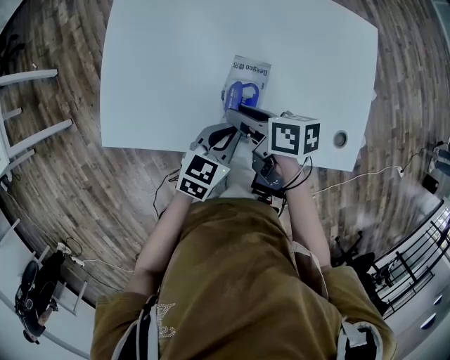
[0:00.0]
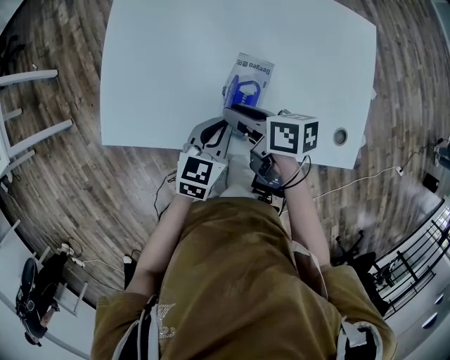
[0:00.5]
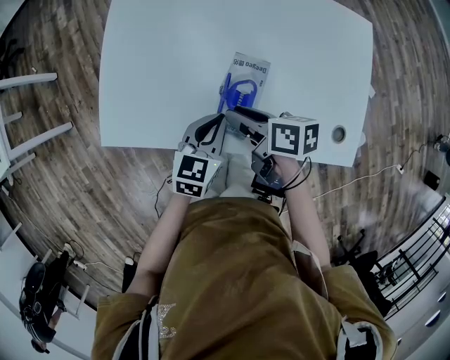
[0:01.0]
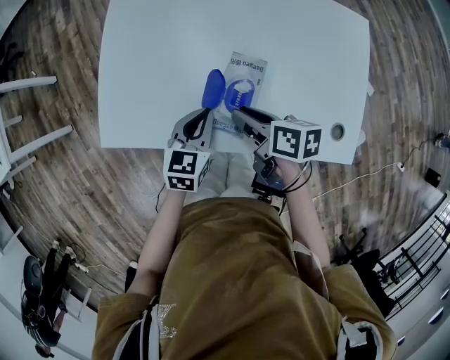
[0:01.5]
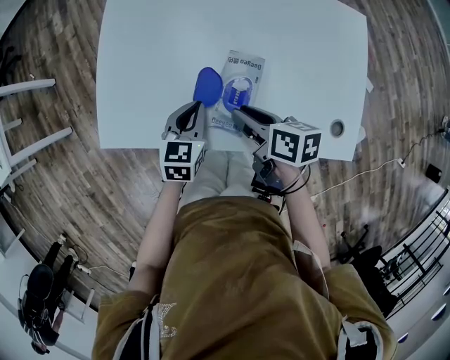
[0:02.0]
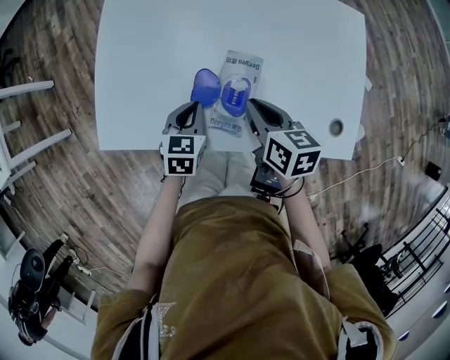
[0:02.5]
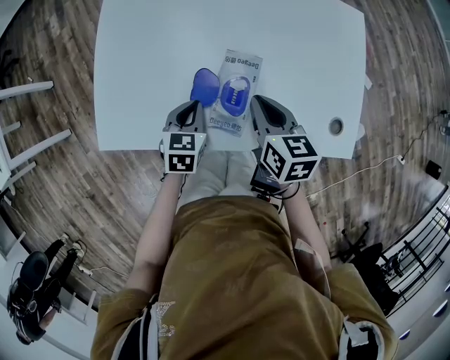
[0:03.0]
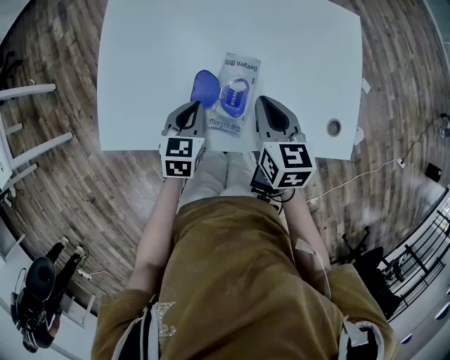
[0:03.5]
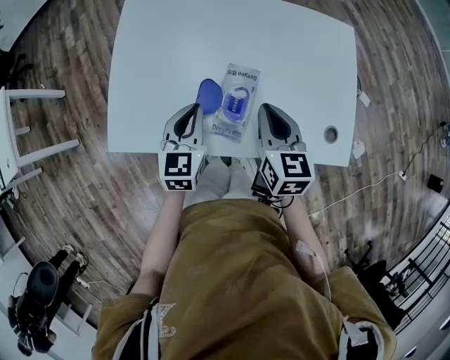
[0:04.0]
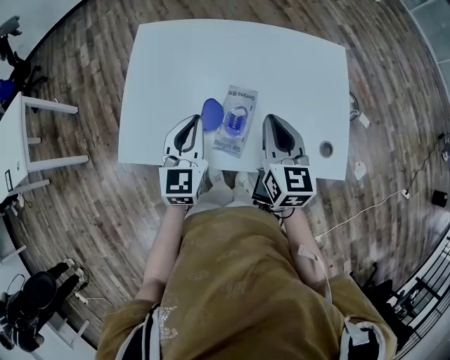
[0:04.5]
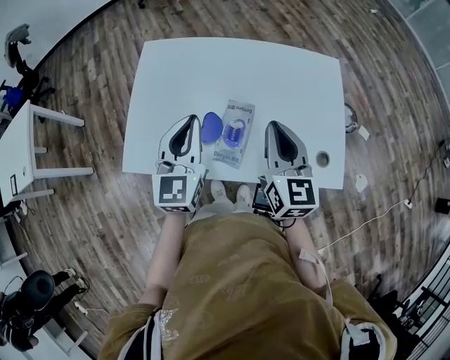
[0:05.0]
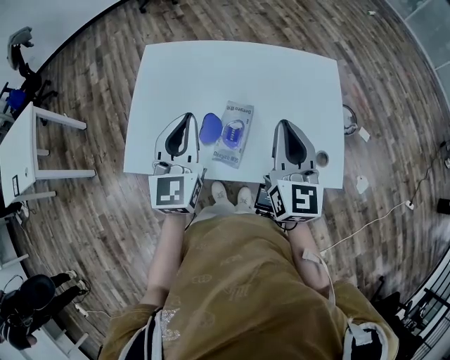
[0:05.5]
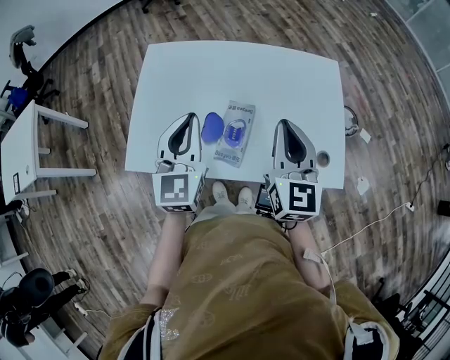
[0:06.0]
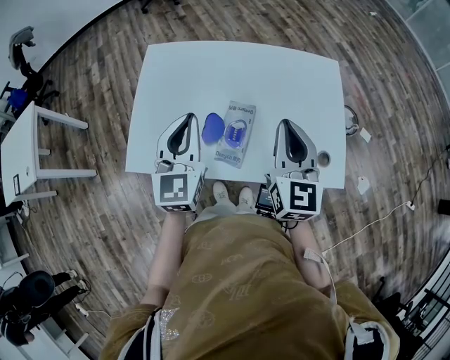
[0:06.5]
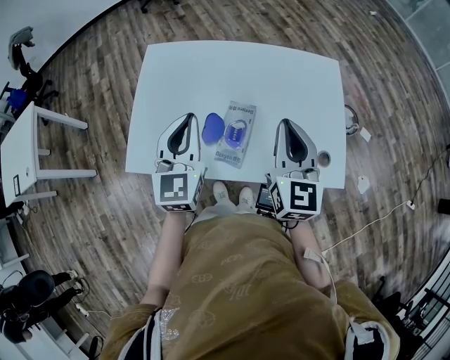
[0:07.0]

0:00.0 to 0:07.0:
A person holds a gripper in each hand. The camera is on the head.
0:00.0 to 0:02.0: The left gripper moves to the left and forward, about 10 cm, and rotates approximately 20 degrees.
0:02.0 to 0:03.5: The right gripper changes place by about 5 cm, swivels roughly 40 degrees, and closes.
0:03.5 to 0:05.0: The right gripper goes about 15 cm upward, and rotates some 20 degrees. Meanwhile the left gripper heads upward, covering approximately 25 cm, and tips its fingers upward by some 30 degrees.
0:05.0 to 0:07.0: The grippers move only a little.

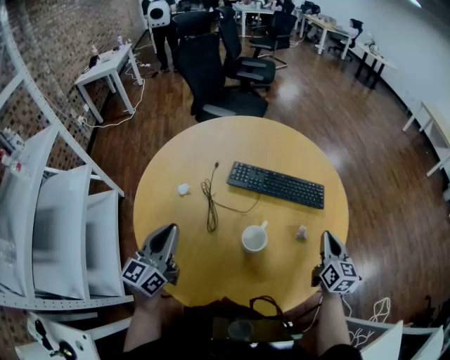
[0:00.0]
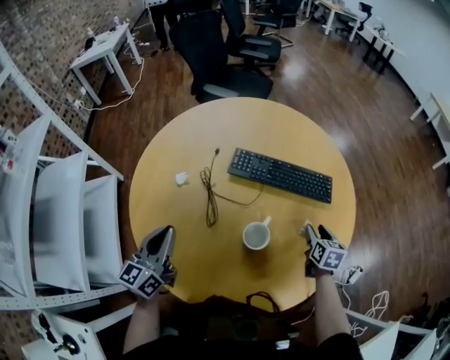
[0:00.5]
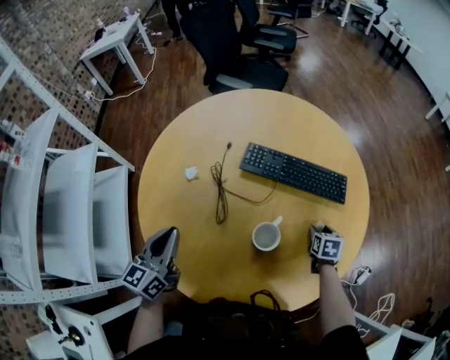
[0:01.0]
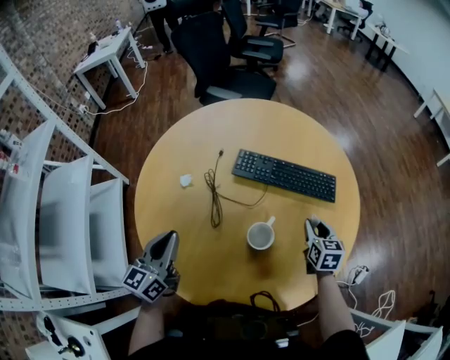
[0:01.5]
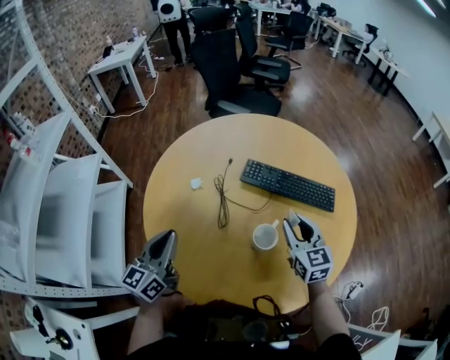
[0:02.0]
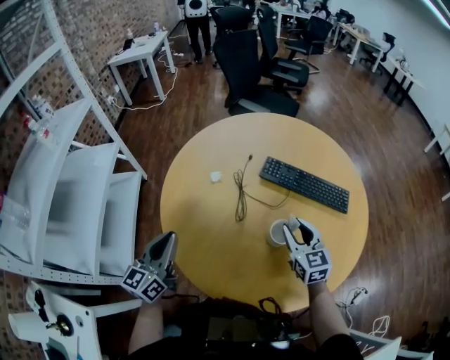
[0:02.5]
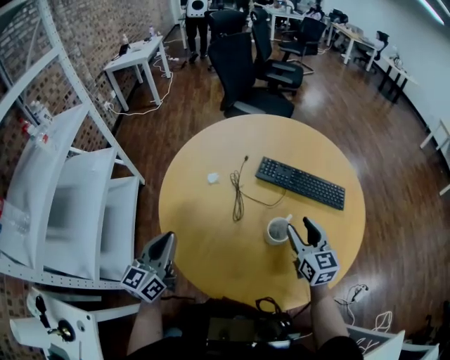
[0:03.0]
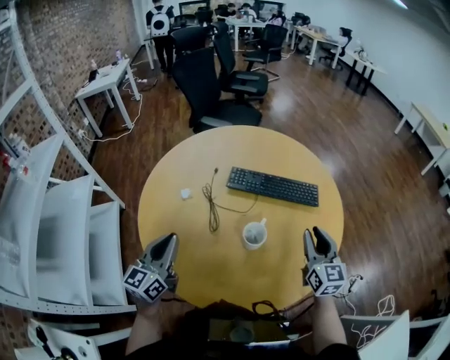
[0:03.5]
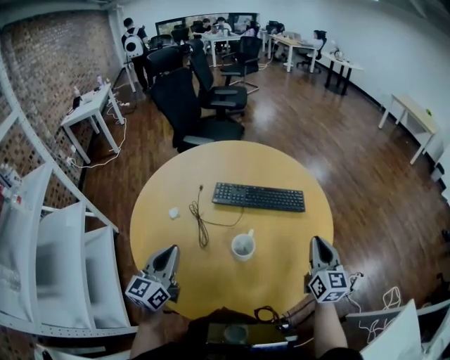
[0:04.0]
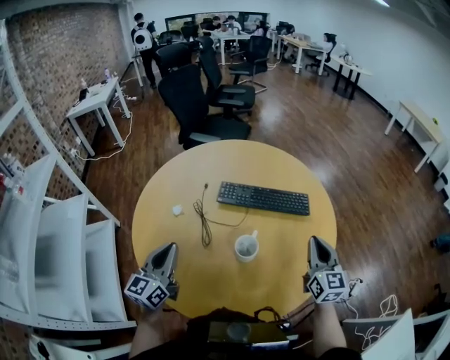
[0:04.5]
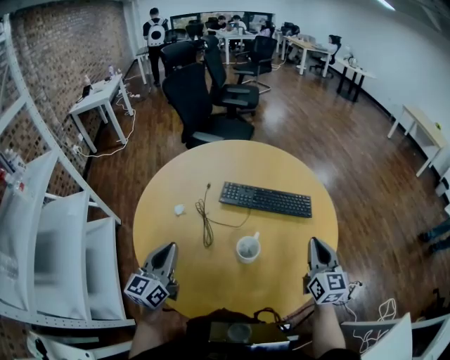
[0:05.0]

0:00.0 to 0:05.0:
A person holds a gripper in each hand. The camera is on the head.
0:00.0 to 0:02.5: The right gripper shifts about 20 cm to the left, rotates some 30 degrees, and opens its fingers; the left gripper travels backward and to the left by about 10 cm.
0:02.5 to 0:05.0: The left gripper heads to the right and forward, covering roughly 10 cm. Meanwhile the right gripper heads to the right, covering about 20 cm, swivels approximately 30 degrees, and closes its fingers.

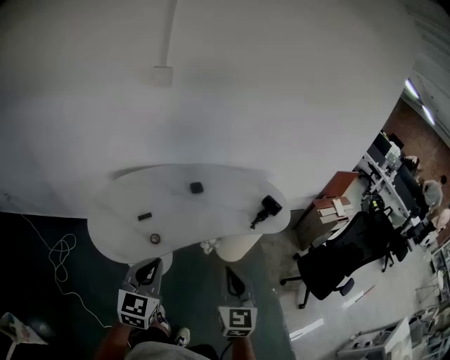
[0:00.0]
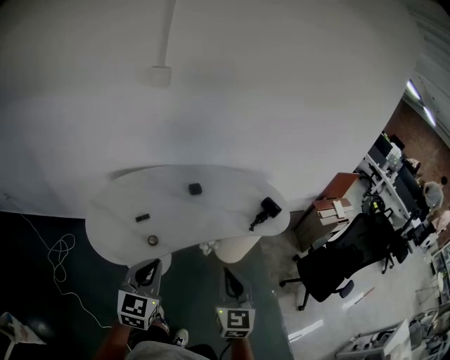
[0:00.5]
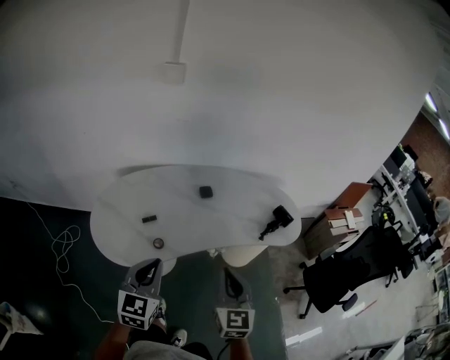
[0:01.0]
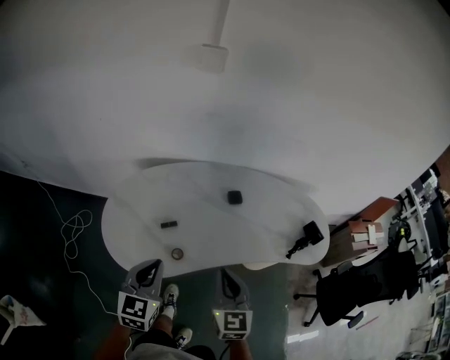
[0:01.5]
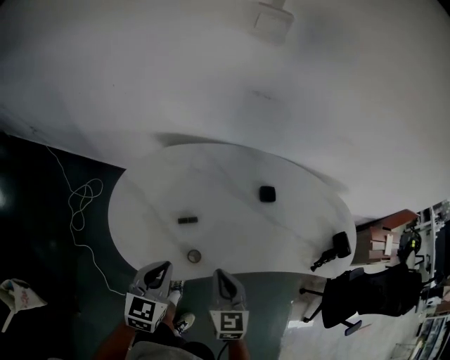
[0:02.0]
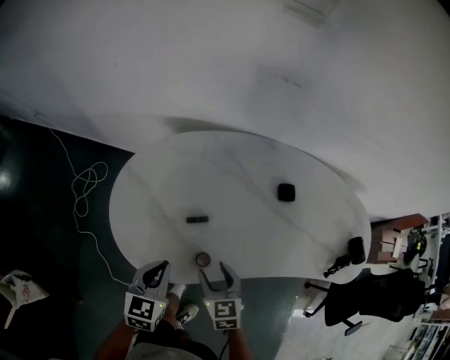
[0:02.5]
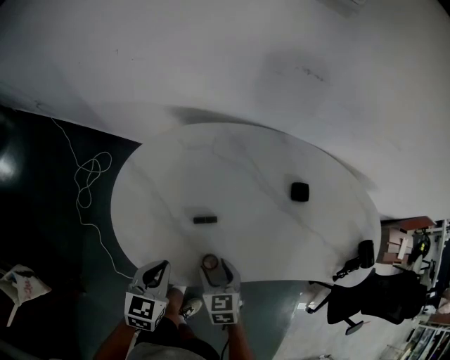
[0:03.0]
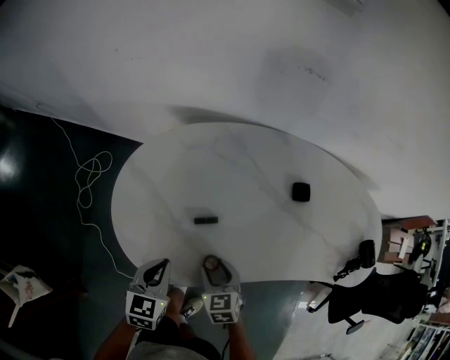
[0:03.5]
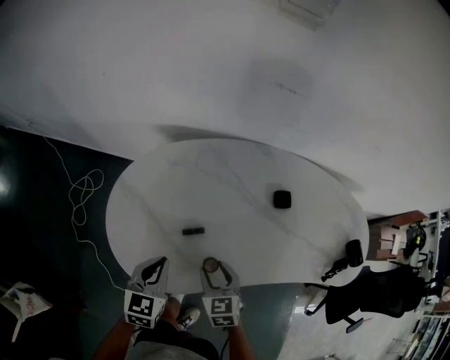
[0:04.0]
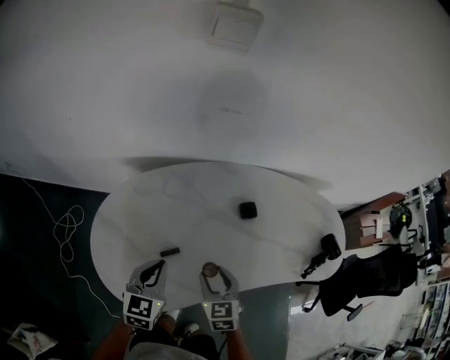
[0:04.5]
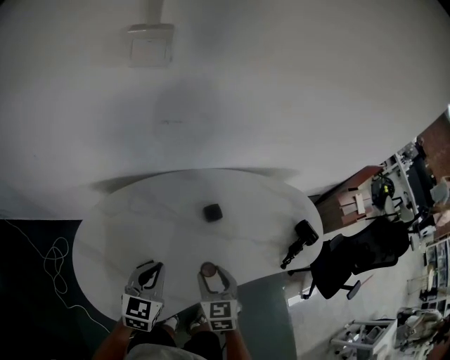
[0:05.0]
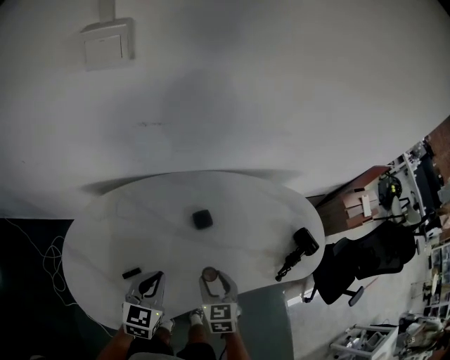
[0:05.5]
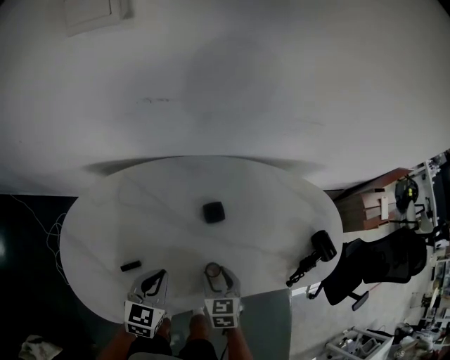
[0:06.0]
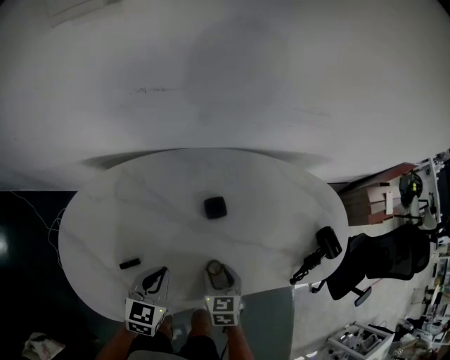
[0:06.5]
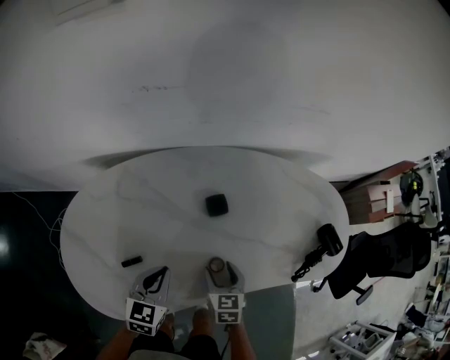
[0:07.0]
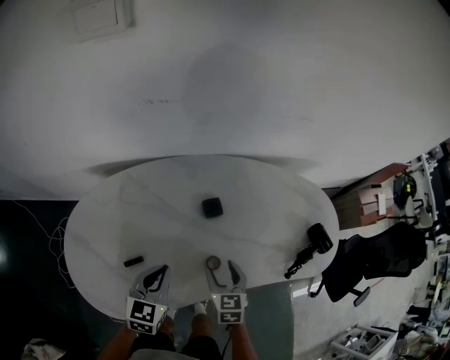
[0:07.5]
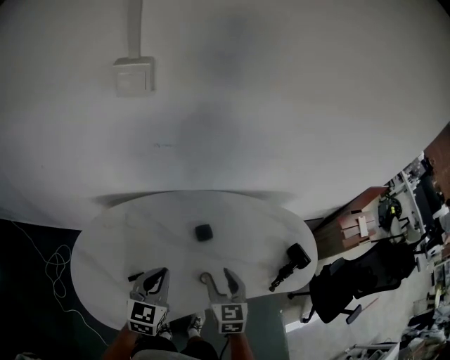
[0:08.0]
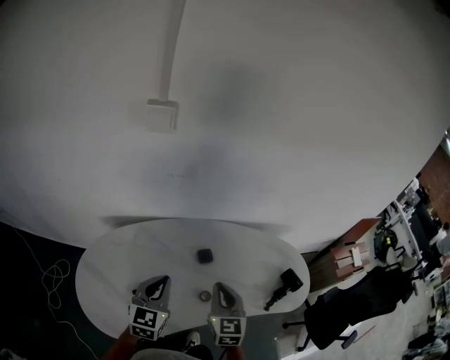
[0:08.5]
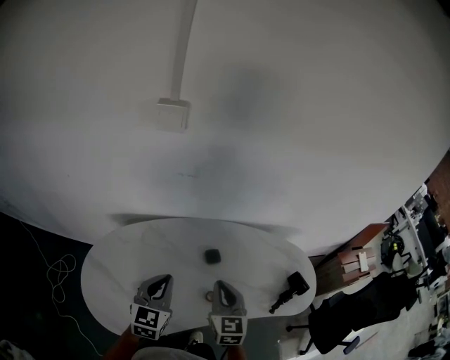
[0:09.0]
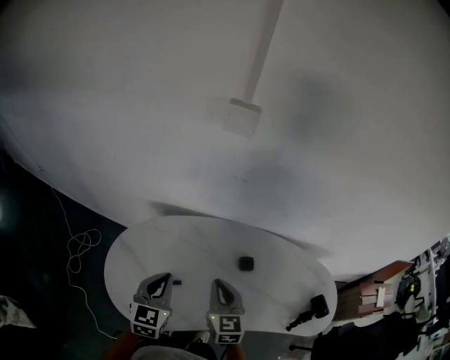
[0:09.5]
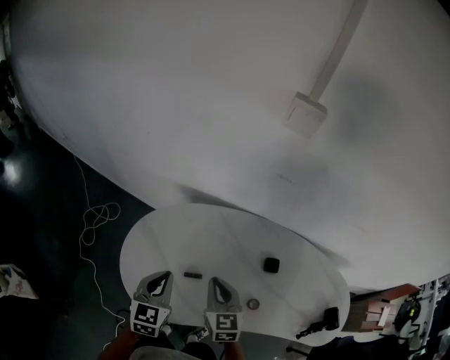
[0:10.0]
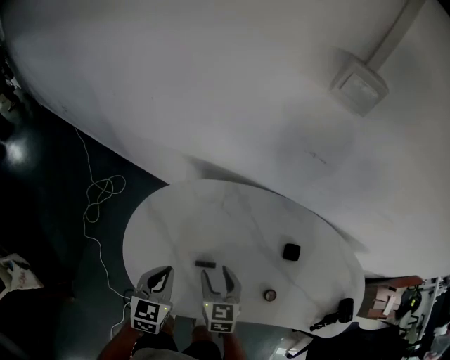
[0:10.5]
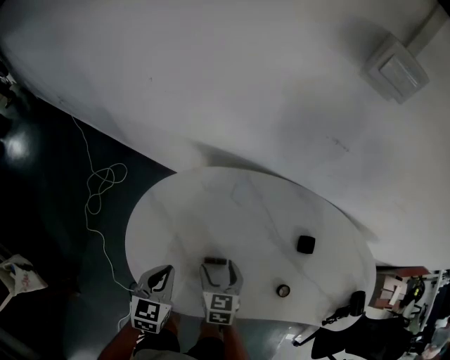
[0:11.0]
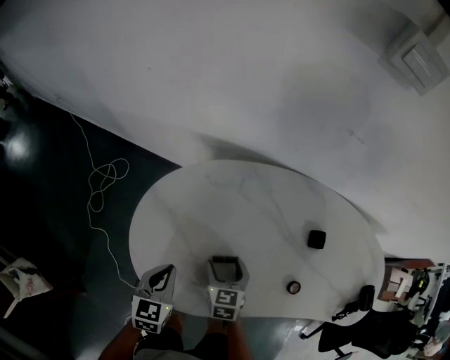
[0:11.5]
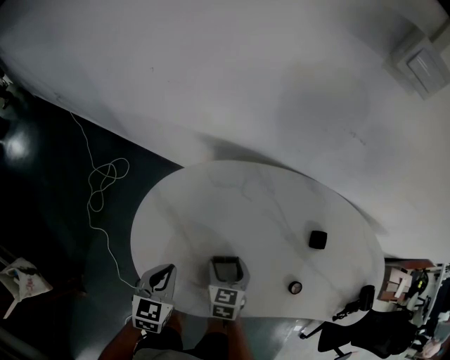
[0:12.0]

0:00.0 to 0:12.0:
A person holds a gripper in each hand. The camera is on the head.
0:00.0 to 0:02.0: The left gripper moves downward, forward and to the left, approximately 25 cm, and swivels about 20 degrees, while the right gripper is displaced to the left, forward and downward by about 30 cm, and rotates approximately 30 degrees.
0:02.0 to 0:04.0: The right gripper heads downward and forward, covering about 10 cm, and opens its fingers, while the left gripper travels forward and downward by approximately 10 cm.
0:04.0 to 0:06.0: The grippers both shift to the right and forward by some 20 cm.
0:06.0 to 0:08.0: The grippers both shift upward by approximately 15 cm.
0:08.0 to 0:10.0: The left gripper shifts by some 20 cm, and turns by some 30 degrees. The right gripper reaches about 10 cm upward, then returns, turns by approximately 30 degrees, and closes its fingers.
0:10.0 to 0:12.0: The right gripper goes some 20 cm downward, turns by roughly 20 degrees, and opens, while the left gripper goes about 15 cm downward and to the left.

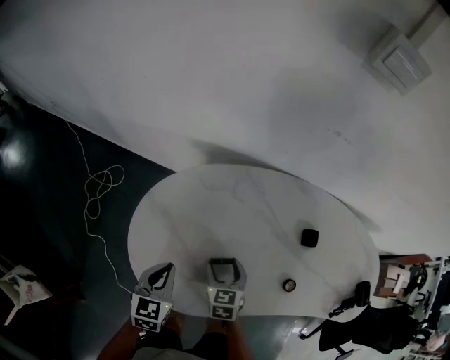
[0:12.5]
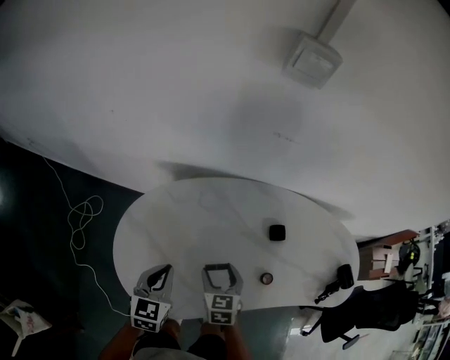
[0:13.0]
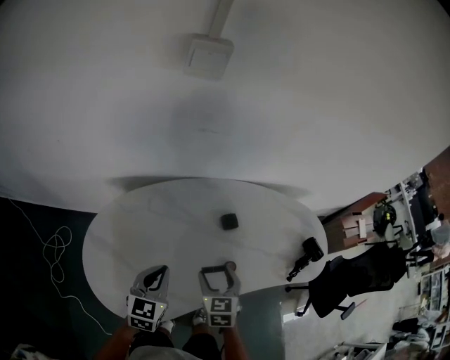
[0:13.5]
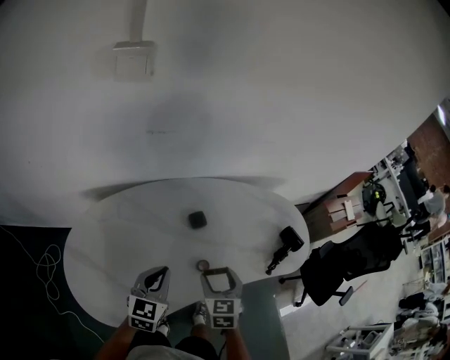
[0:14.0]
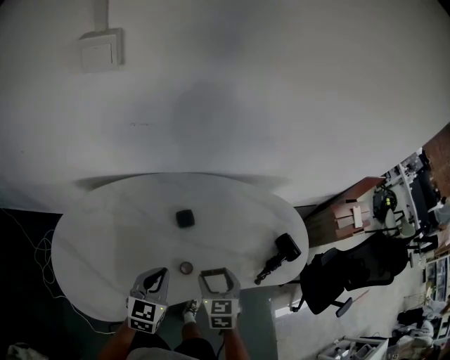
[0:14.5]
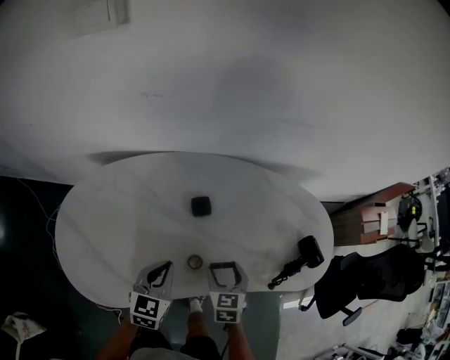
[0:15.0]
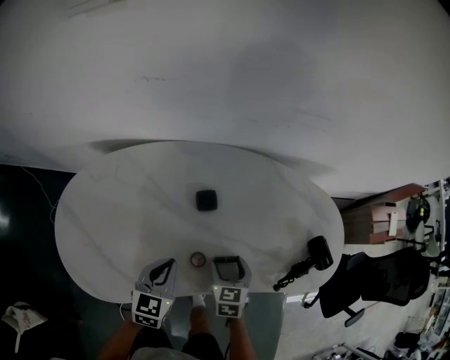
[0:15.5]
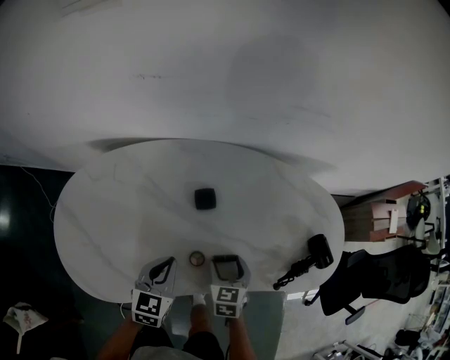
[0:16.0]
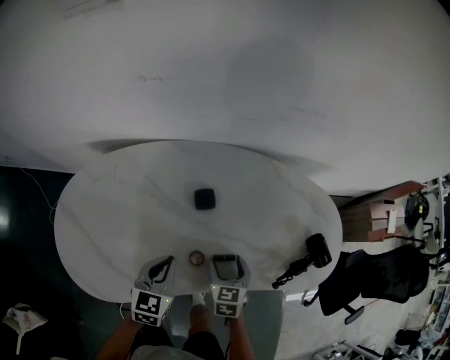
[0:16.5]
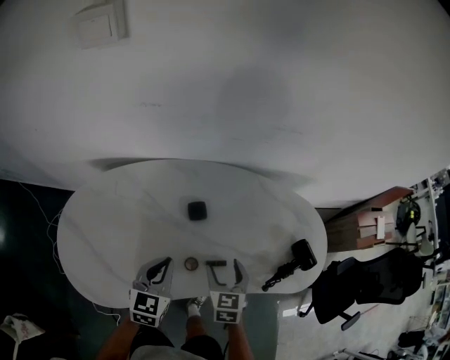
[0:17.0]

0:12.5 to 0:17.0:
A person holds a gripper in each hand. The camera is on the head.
0:12.5 to 0:14.5: The right gripper changes place by roughly 35 cm, and rotates roughly 20 degrees; the left gripper moves roughly 35 cm, and turns by roughly 30 degrees.
0:14.5 to 0:17.0: The right gripper goes downward and returns, roughly 10 cm each way.
